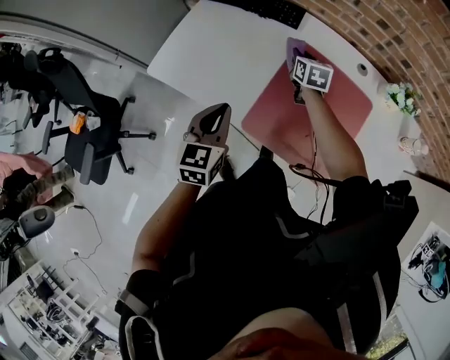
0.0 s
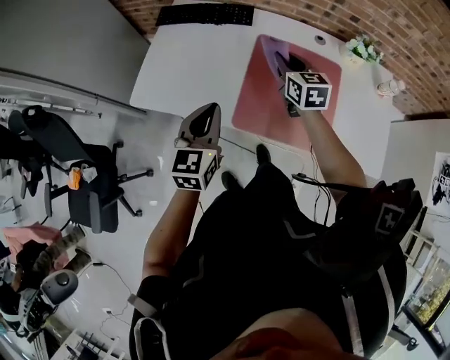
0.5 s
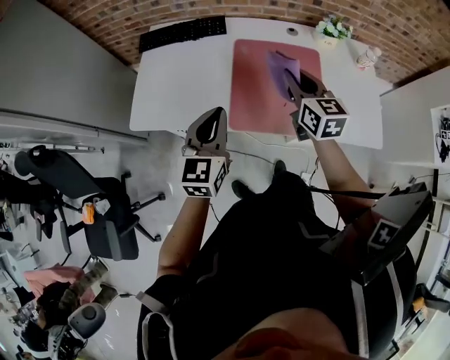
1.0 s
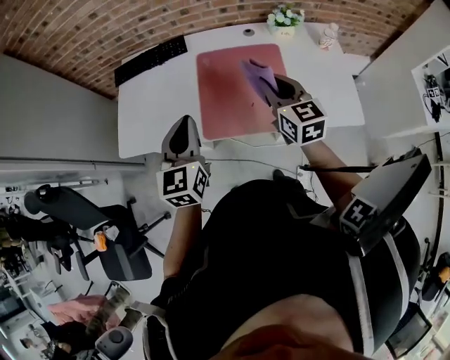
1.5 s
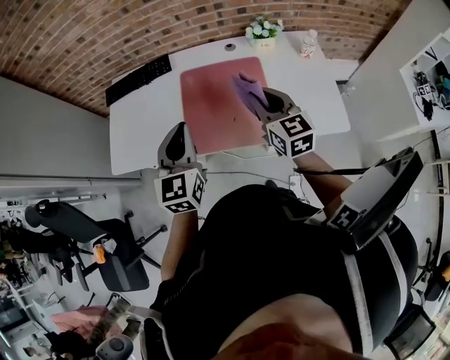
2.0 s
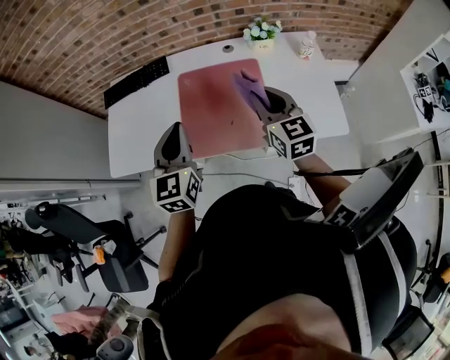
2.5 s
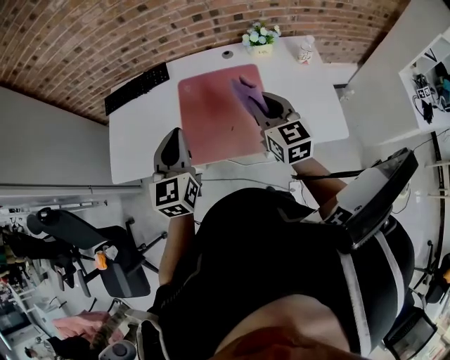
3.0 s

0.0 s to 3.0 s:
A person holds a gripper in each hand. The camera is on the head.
0.0 to 1.5 s: The left gripper heads upward, to the right and backward, covering roughly 15 cm, and changes its angle by approximately 20 degrees. Meanwhile the right gripper travels backward, upward and to the right by roughly 40 cm, and turns by roughly 30 degrees.
1.5 to 3.0 s: The two grippers go about 5 cm to the right.

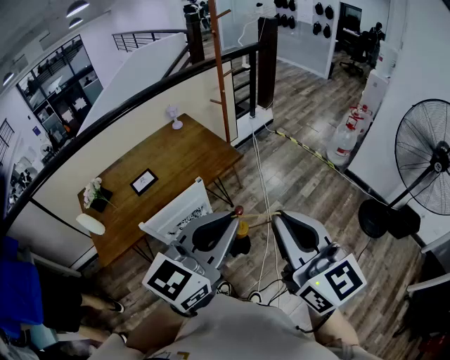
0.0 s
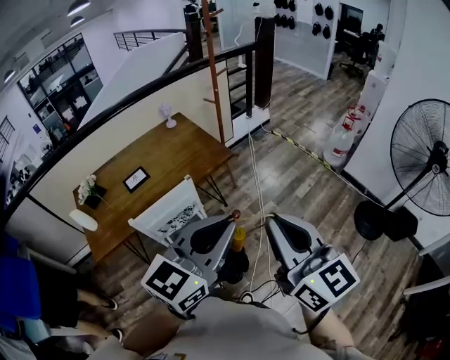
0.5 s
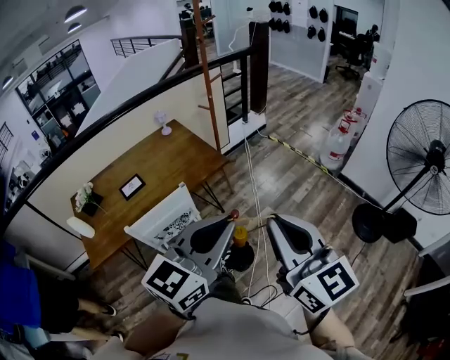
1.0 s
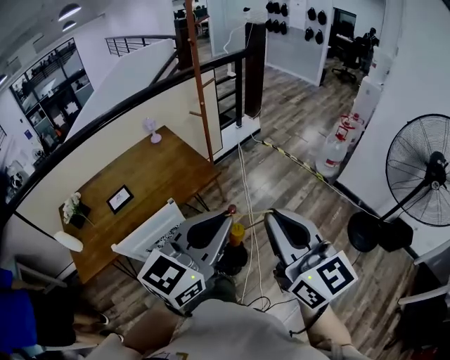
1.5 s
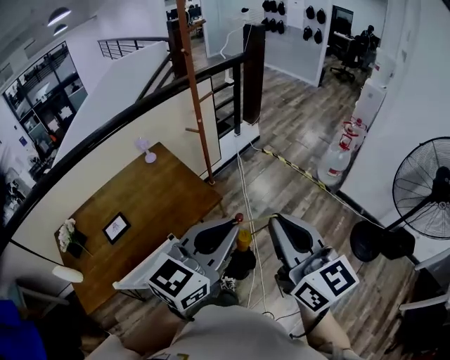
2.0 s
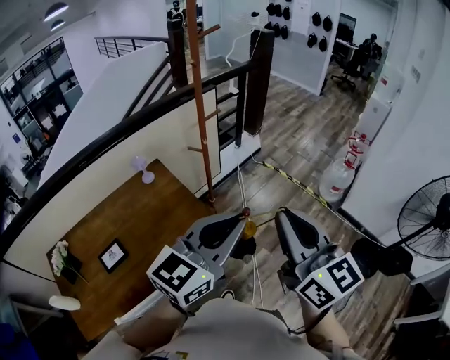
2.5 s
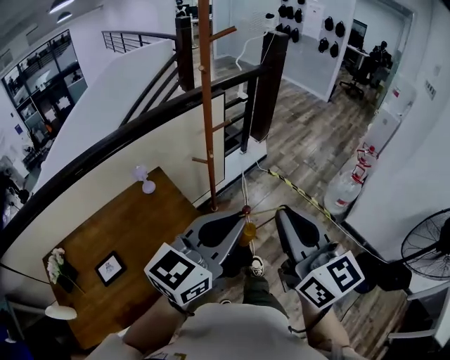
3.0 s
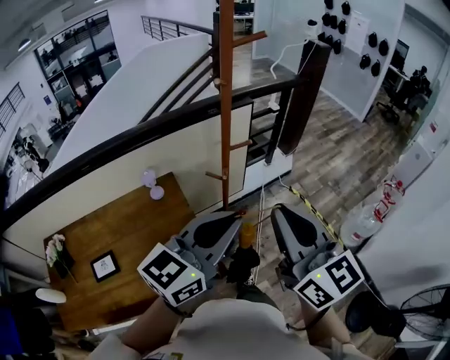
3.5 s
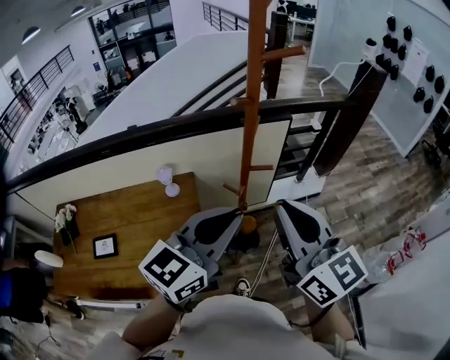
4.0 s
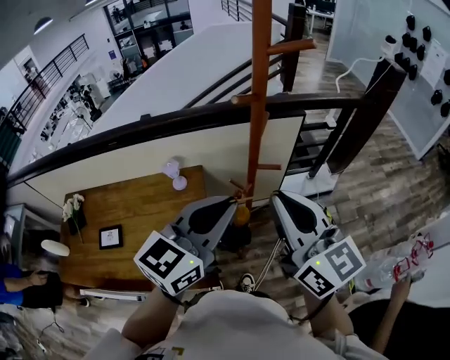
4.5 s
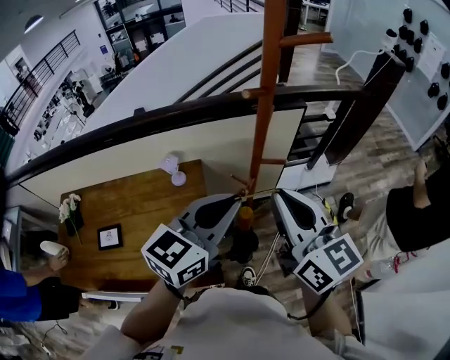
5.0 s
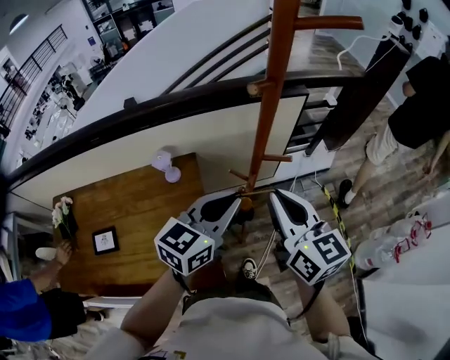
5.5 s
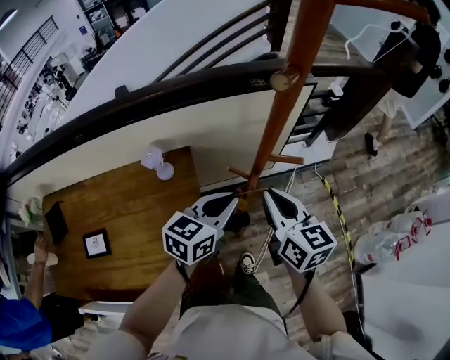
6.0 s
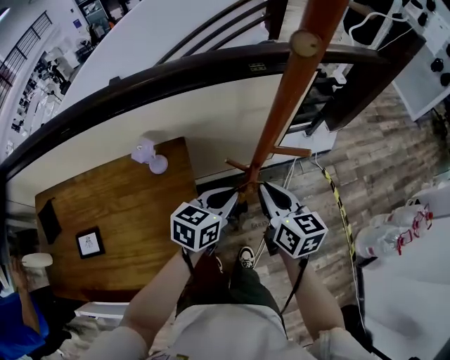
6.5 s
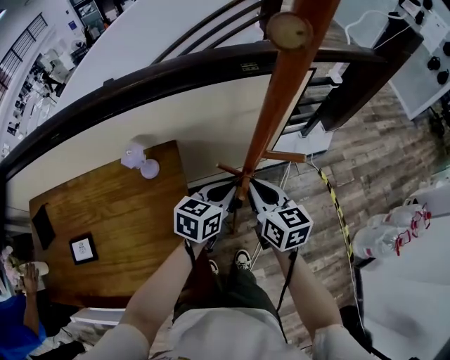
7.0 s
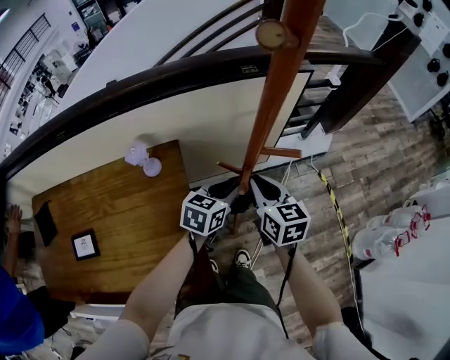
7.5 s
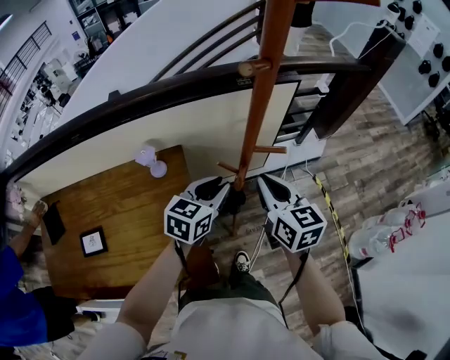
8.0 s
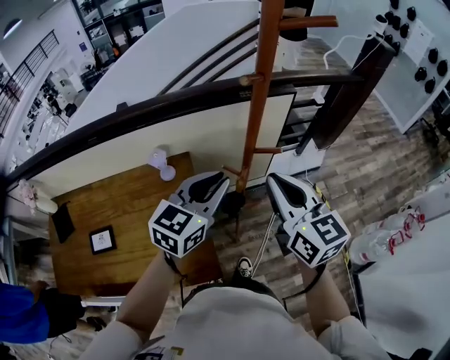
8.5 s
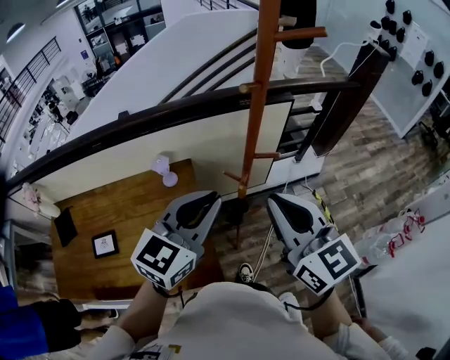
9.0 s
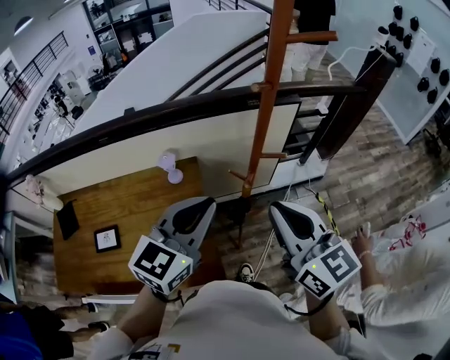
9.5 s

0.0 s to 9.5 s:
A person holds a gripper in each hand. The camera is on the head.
0.0 to 2.0 s: The two grippers go about 25 cm forward.
2.0 to 4.0 s: Both grippers are carried about 50 cm. The left gripper turns by approximately 30 degrees. Meanwhile the right gripper swivels some 30 degrees.
4.0 to 5.5 s: Both grippers move downward and forward, about 15 cm.
5.5 to 7.5 s: The two grippers go about 25 cm downward and forward. The left gripper rotates about 20 degrees, and opens.
7.5 to 9.5 s: The grippers both shift upward and backward by about 35 cm. The right gripper rotates about 20 degrees; the left gripper swivels some 30 degrees.

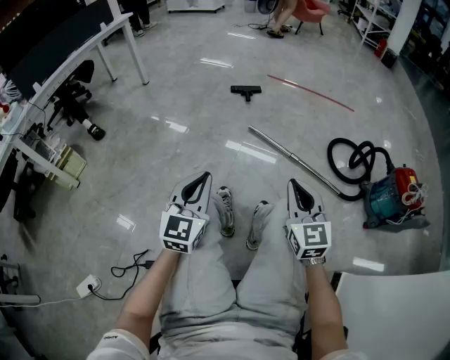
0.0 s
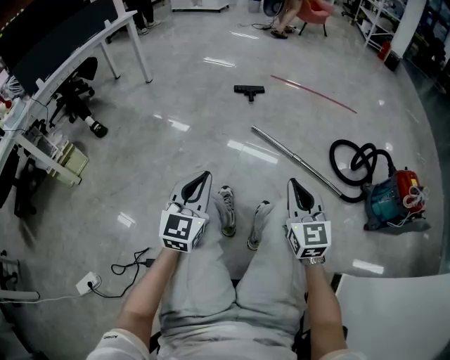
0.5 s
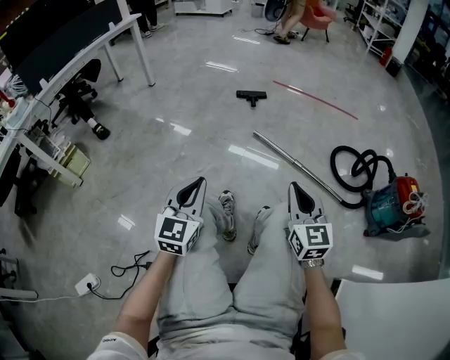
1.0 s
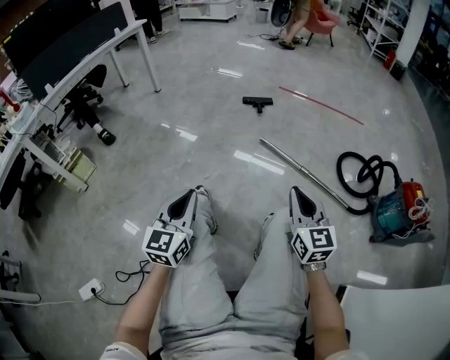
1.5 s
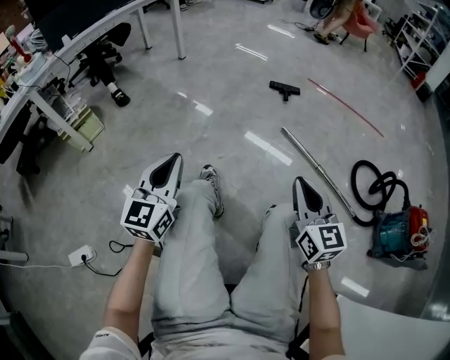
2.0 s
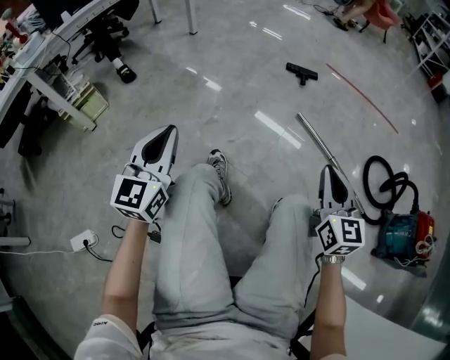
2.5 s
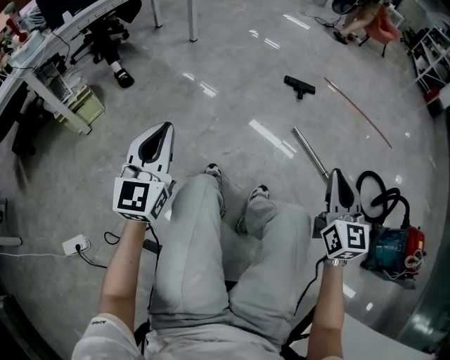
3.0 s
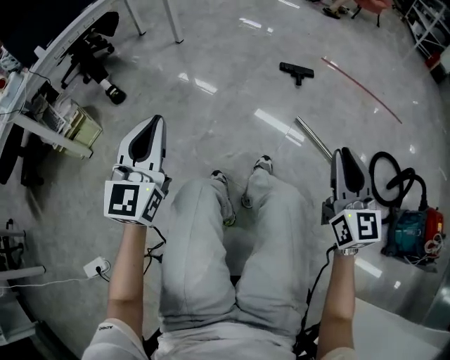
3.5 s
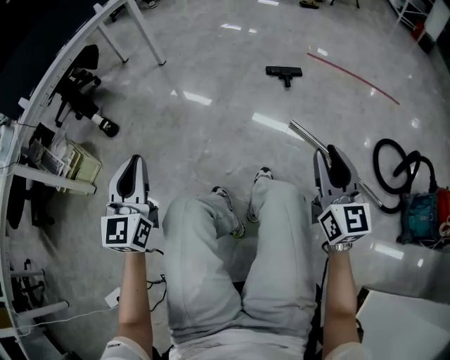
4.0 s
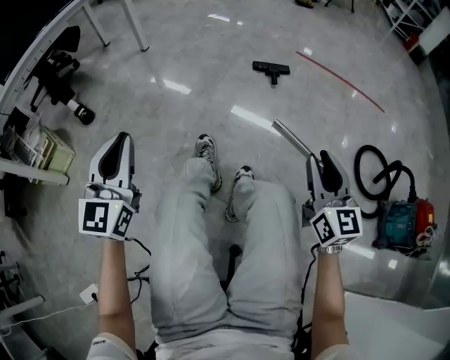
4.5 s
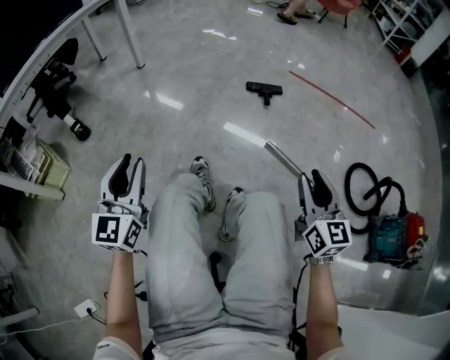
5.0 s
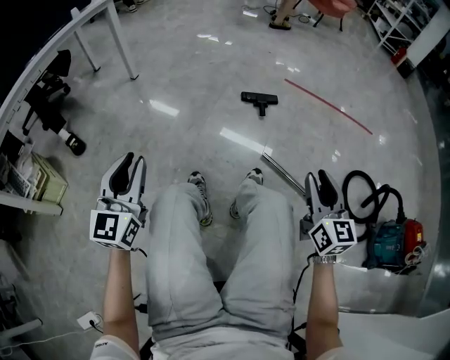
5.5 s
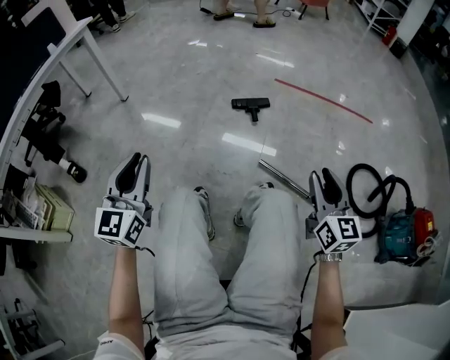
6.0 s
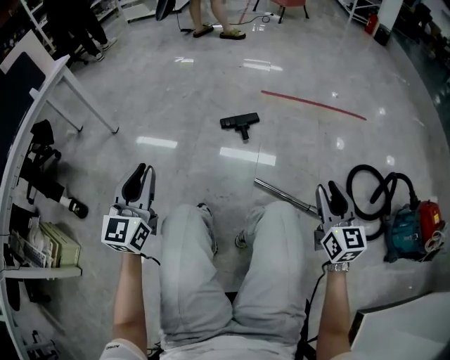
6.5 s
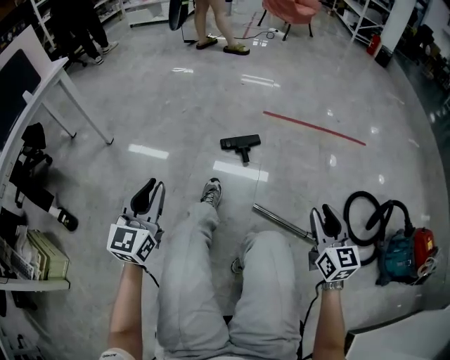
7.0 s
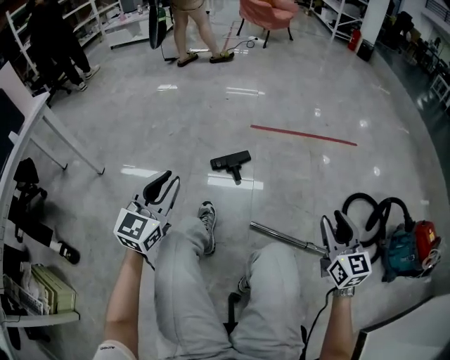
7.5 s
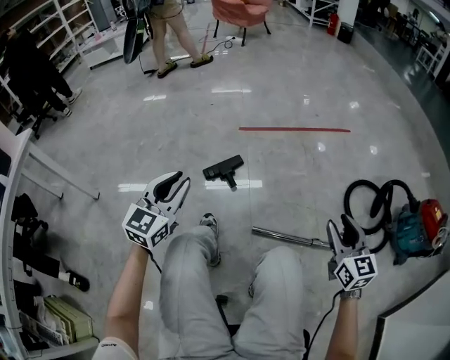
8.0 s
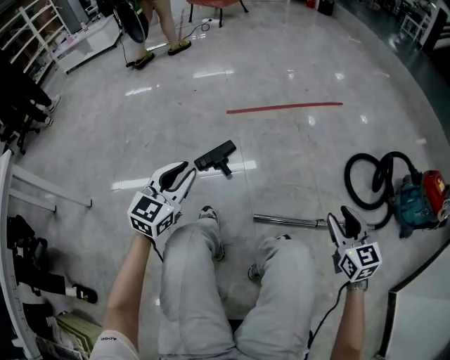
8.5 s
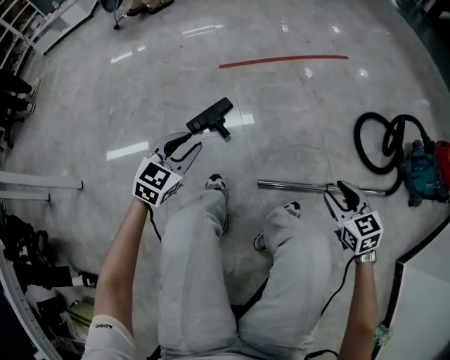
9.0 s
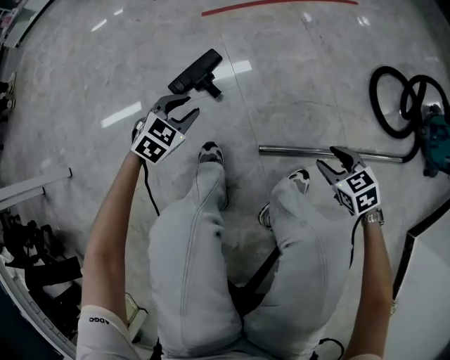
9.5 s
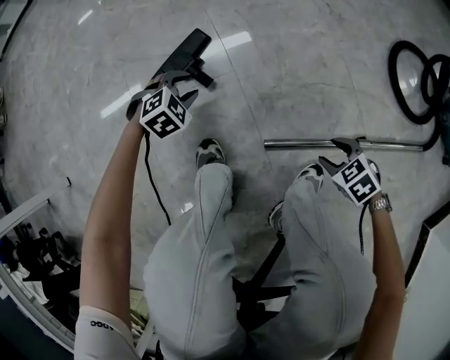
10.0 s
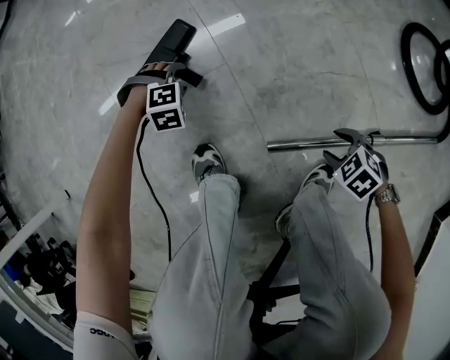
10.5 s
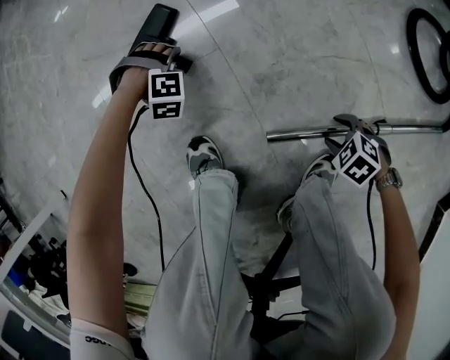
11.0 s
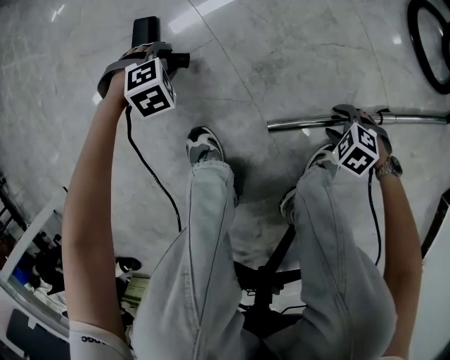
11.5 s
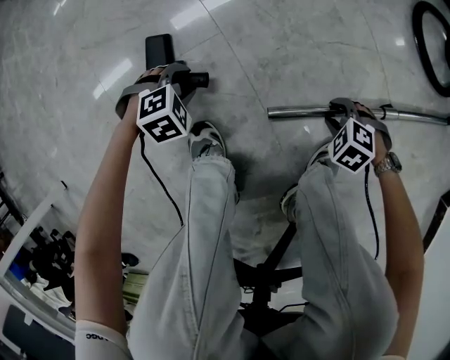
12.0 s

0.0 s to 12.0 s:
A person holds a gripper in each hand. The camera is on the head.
0.0 to 2.0 s: The right gripper shifts roughly 10 cm to the left, while the left gripper shifts about 20 cm to the left.
2.0 to 4.0 s: Both grippers travel together forward, about 20 cm. The right gripper opens up.
4.0 to 6.0 s: The left gripper moves forward, approximately 25 cm. The right gripper travels forward and to the right by roughly 20 cm.
6.0 to 8.0 s: The left gripper ends up some 40 cm from where it was, and swivels roughly 40 degrees, while the right gripper ends up approximately 15 cm from where it was.
8.0 to 10.0 s: The left gripper is displaced downward and forward by roughly 50 cm, and points its fingers approximately 60 degrees further downward; the right gripper shifts roughly 40 cm downward, and tips its fingers downward by about 50 degrees.
10.0 to 12.0 s: The two grippers go roughly 10 cm downward. The right gripper turns by roughly 20 degrees.

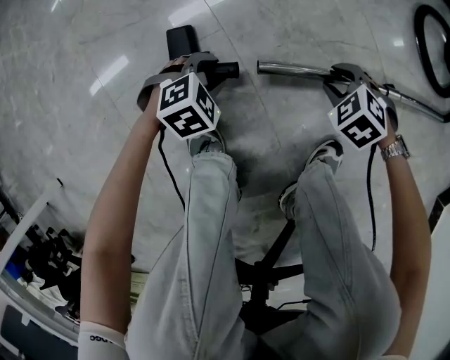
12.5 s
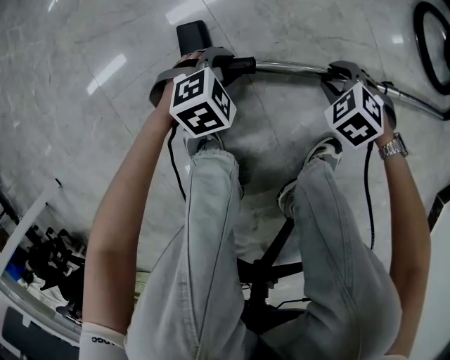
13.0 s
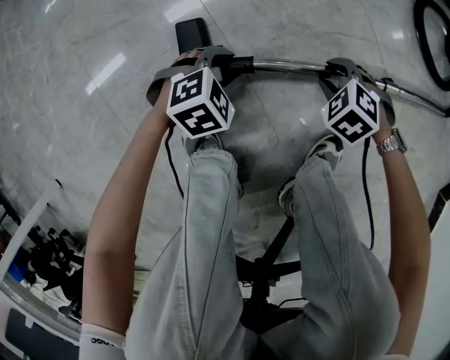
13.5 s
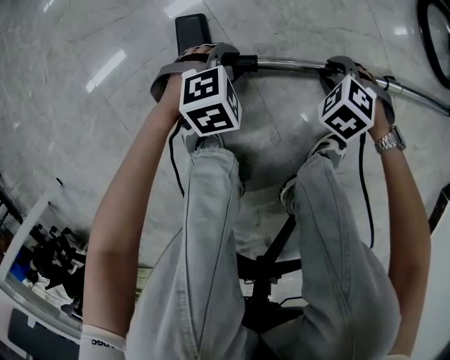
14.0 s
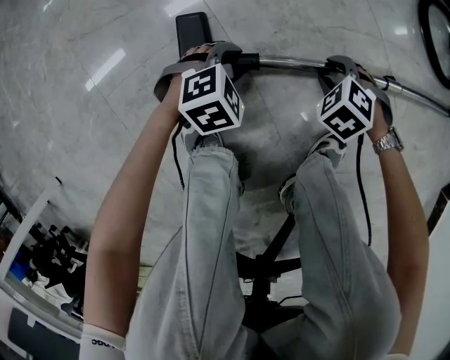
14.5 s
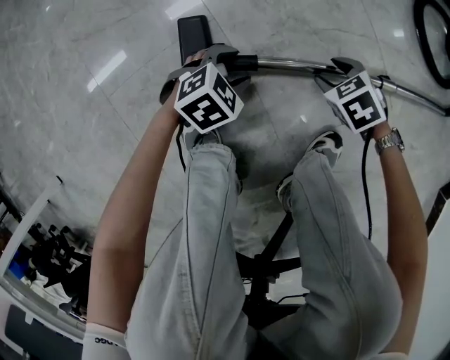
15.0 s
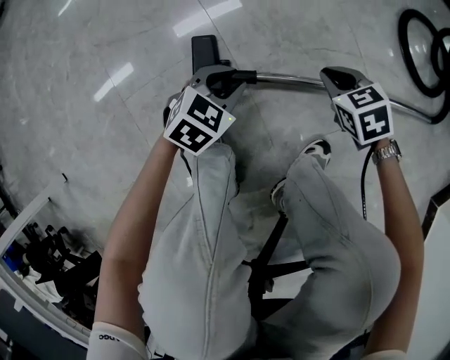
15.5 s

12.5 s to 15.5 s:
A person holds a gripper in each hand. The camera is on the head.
12.5 to 14.0 s: The left gripper ends up roughly 5 cm from where it was.
14.0 to 15.5 s: Both grippers travel together upward, approximately 10 cm. The right gripper rotates roughly 40 degrees, and closes its fingers. Meanwhile the left gripper turns by roughly 40 degrees.
